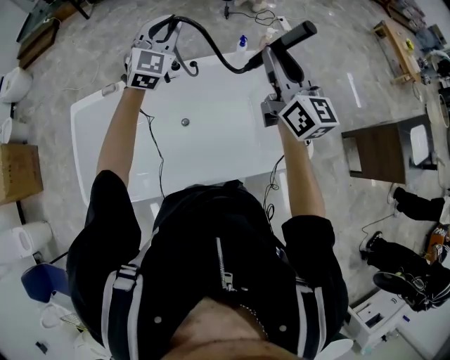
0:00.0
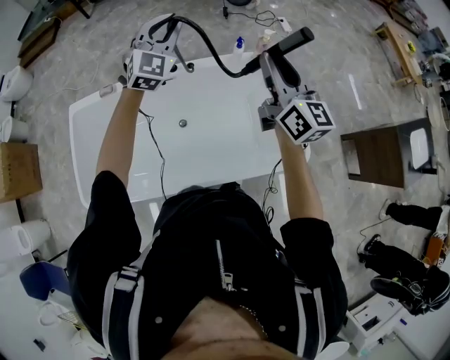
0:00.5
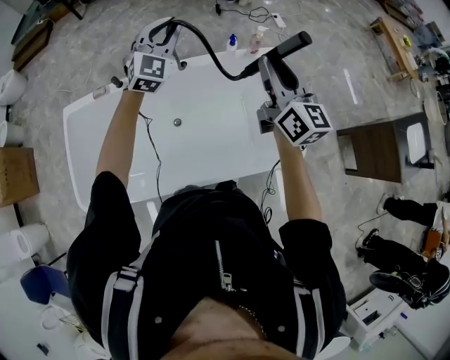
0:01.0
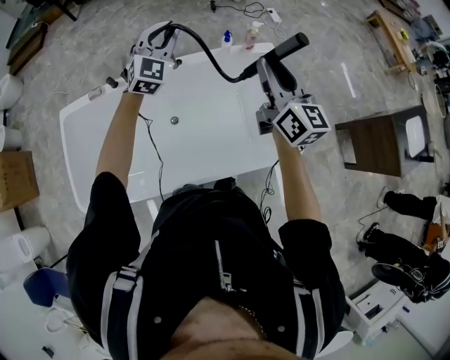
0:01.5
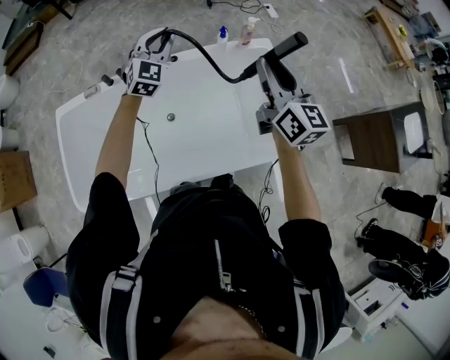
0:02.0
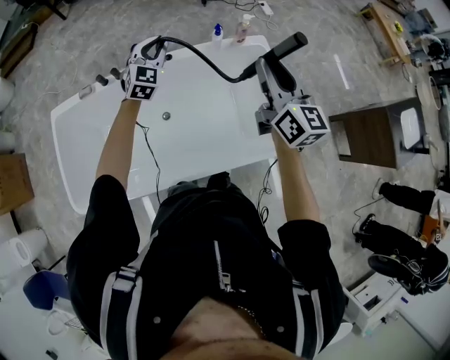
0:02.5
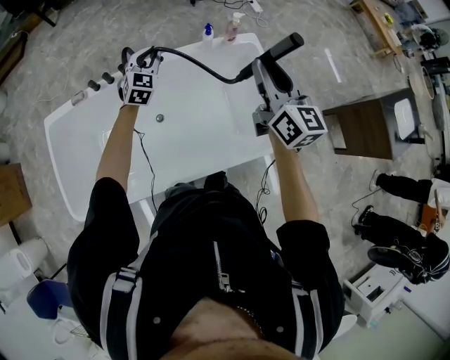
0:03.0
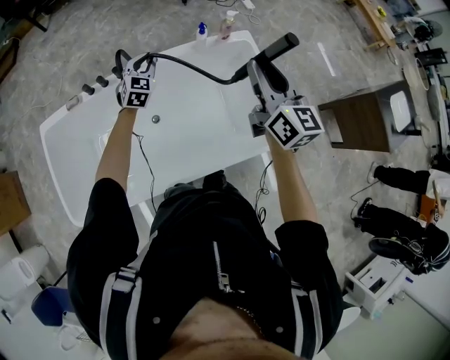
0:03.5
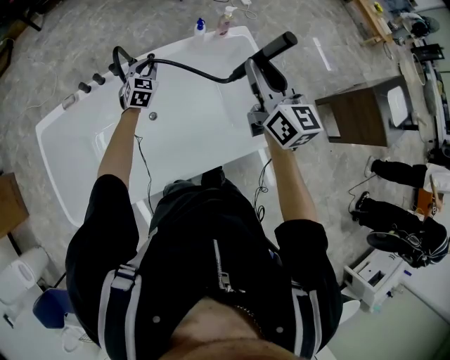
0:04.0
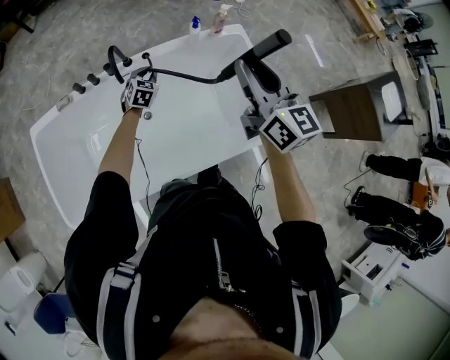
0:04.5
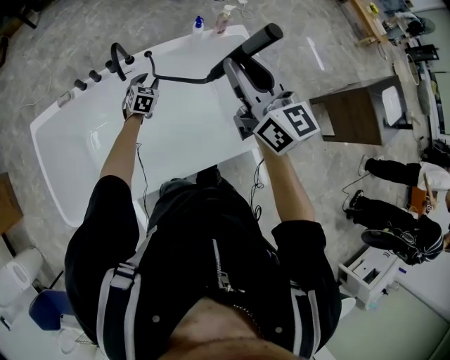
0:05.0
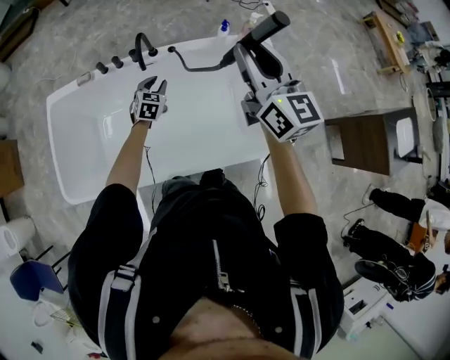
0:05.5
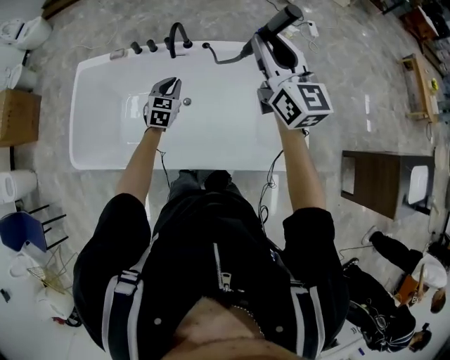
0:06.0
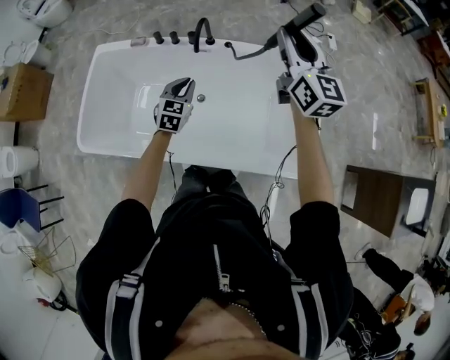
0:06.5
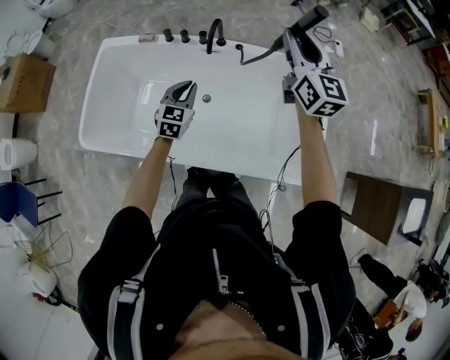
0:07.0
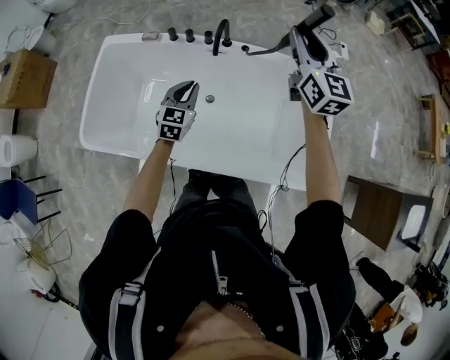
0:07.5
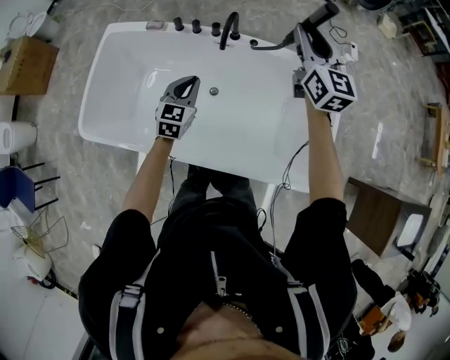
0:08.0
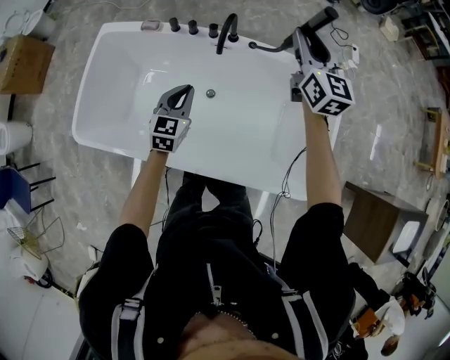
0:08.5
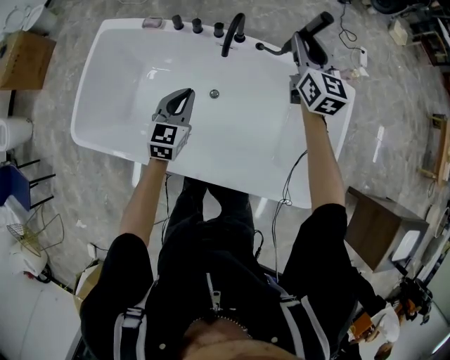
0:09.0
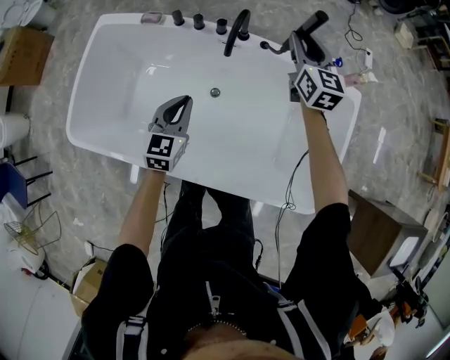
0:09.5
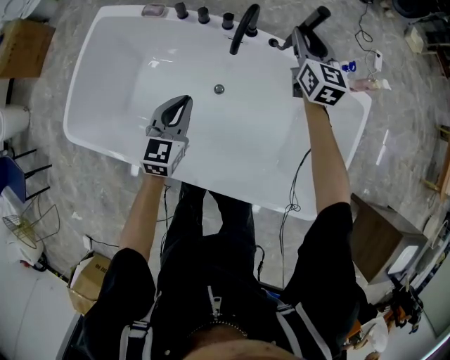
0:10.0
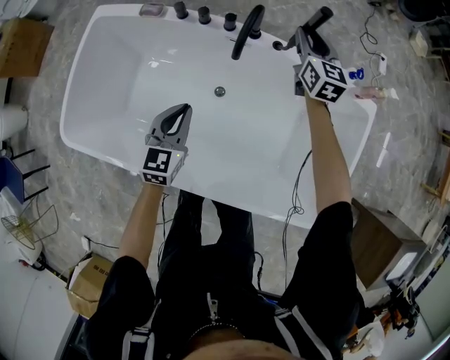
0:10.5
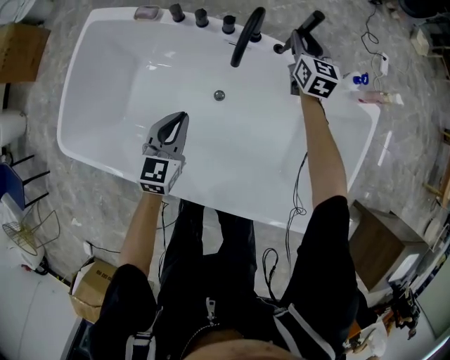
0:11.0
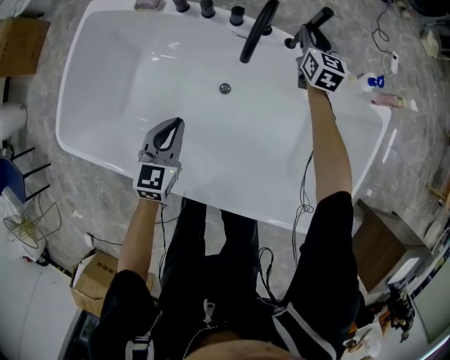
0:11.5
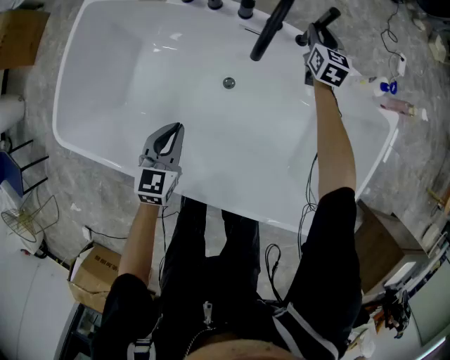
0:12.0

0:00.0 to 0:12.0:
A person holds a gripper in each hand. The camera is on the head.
0:00.0 to 0:02.0: The left gripper heads downward, covering approximately 10 cm. The right gripper shifts roughly 10 cm to the right and downward.
0:02.0 to 0:04.0: The left gripper travels downward by about 20 cm, and swivels about 20 degrees.
0:04.0 to 0:06.0: The left gripper goes approximately 15 cm backward and to the left, and turns by roughly 20 degrees; the right gripper travels to the left by approximately 5 cm, and rotates approximately 20 degrees.
0:06.0 to 0:08.0: The left gripper is displaced to the left by some 10 cm. Meanwhile the right gripper travels forward, to the left and downward by roughly 20 cm.
0:08.0 to 0:10.0: The right gripper is displaced downward and forward by approximately 25 cm. Meanwhile the left gripper shifts some 5 cm downward.
0:10.0 to 0:12.0: The left gripper heads downward, covering about 10 cm. The right gripper shifts some 25 cm downward and forward.

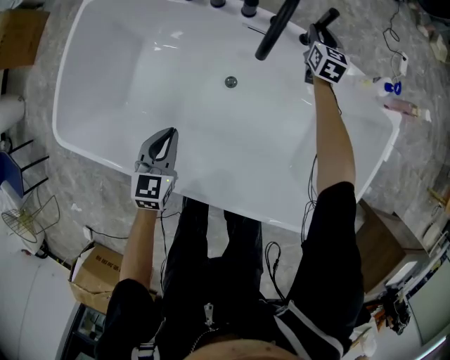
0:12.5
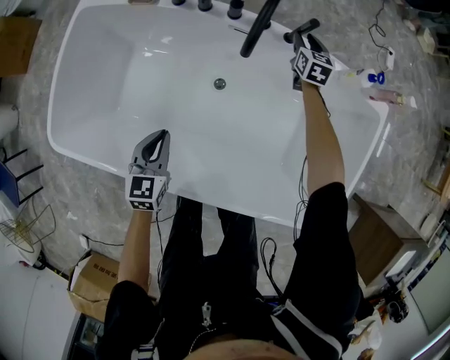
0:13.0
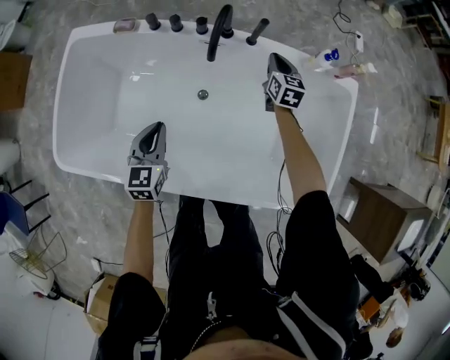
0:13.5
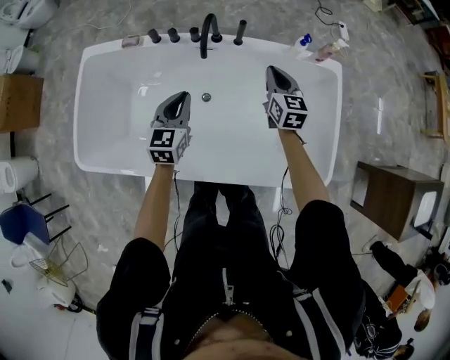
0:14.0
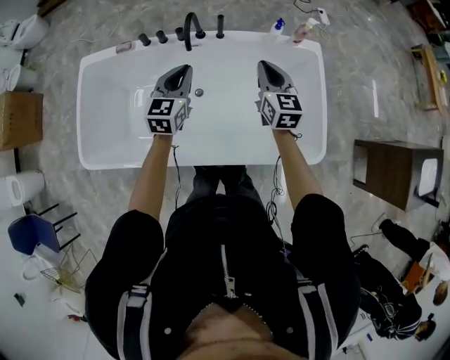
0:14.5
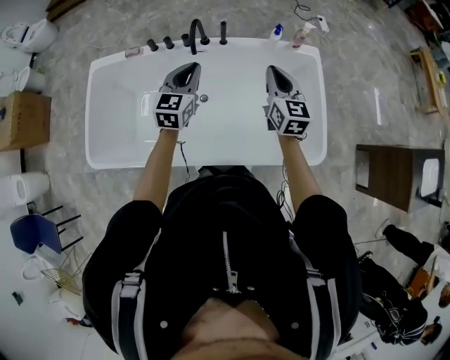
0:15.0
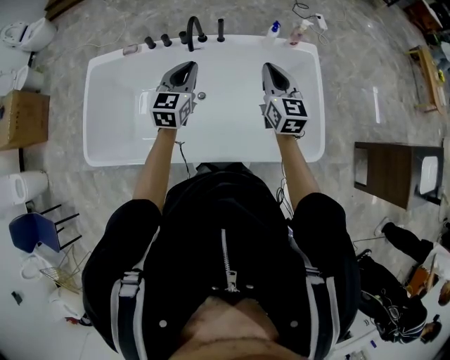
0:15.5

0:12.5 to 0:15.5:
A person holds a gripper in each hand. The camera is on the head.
0:12.5 to 0:14.0: The right gripper shifts some 35 cm backward and upward, and closes; the left gripper goes some 20 cm upward and to the right.
0:14.0 to 0:15.5: The left gripper shifts some 15 cm upward and to the right, while the right gripper moves upward and backward, about 20 cm.

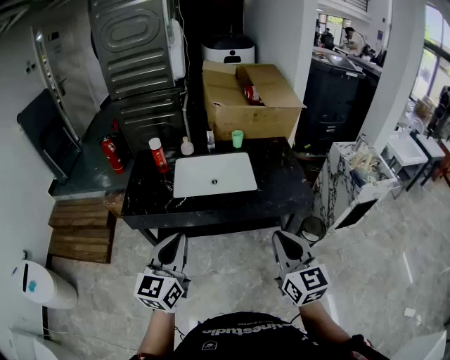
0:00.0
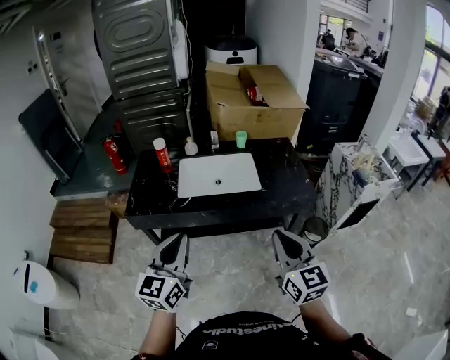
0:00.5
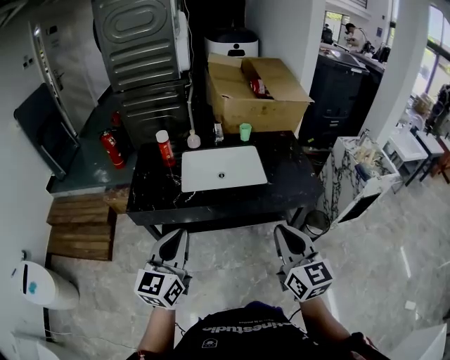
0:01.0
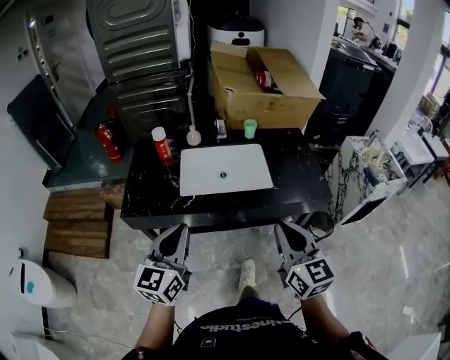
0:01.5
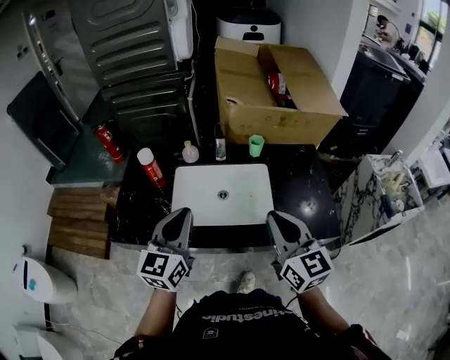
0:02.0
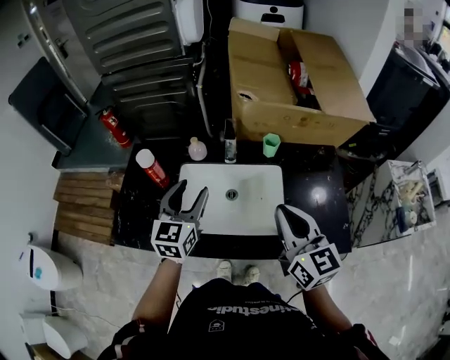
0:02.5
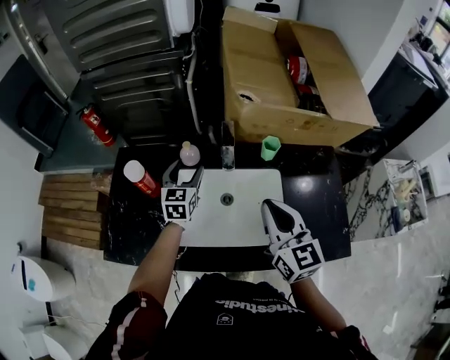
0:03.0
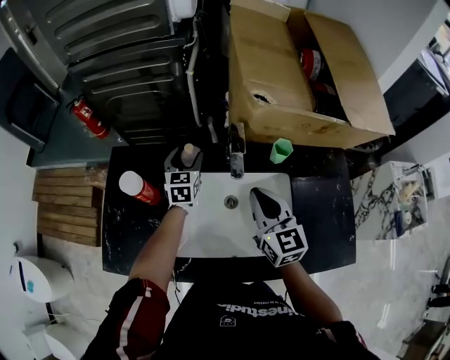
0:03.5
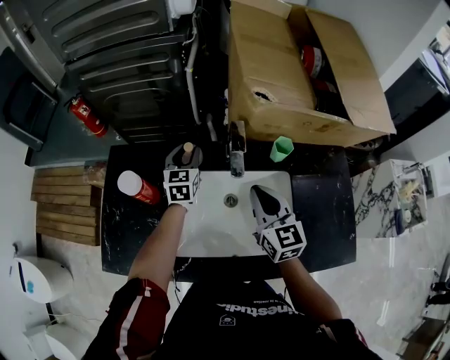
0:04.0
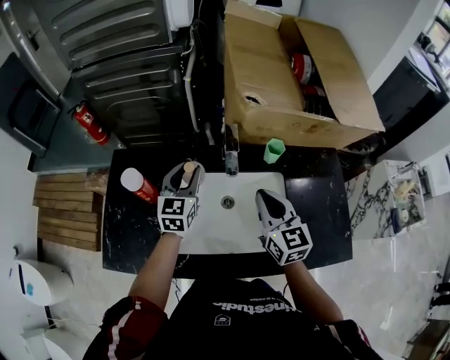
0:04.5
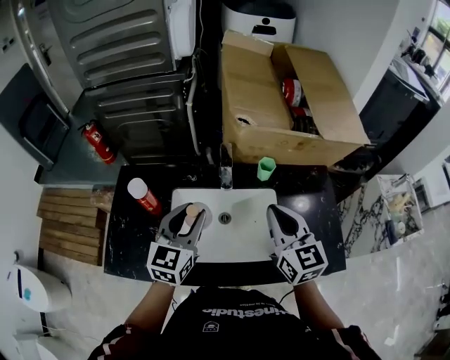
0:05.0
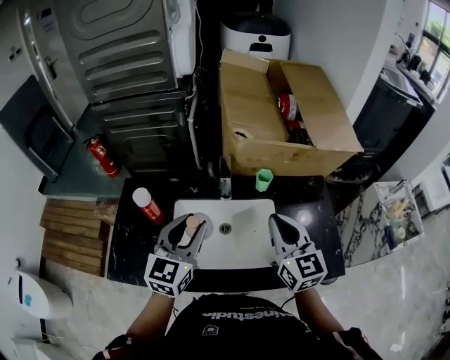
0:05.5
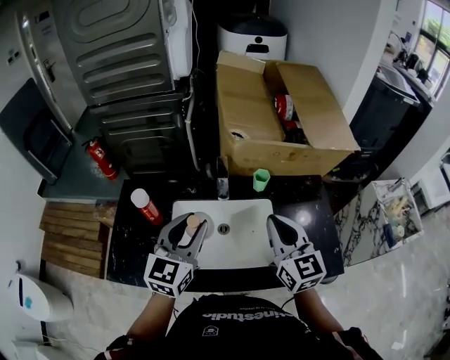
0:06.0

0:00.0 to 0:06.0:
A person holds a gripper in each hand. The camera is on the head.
0:00.0 to 0:02.0: Both grippers move forward, approximately 30 cm.
0:02.0 to 0:04.0: The two grippers go about 40 cm forward and downward. The left gripper opens.
0:04.0 to 0:06.0: The right gripper moves upward, backward and to the right, about 20 cm; the left gripper shifts some 35 cm backward and upward, and swivels about 20 degrees.

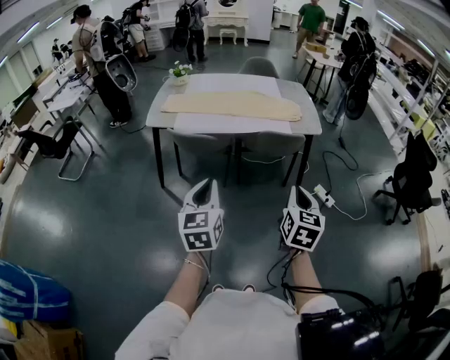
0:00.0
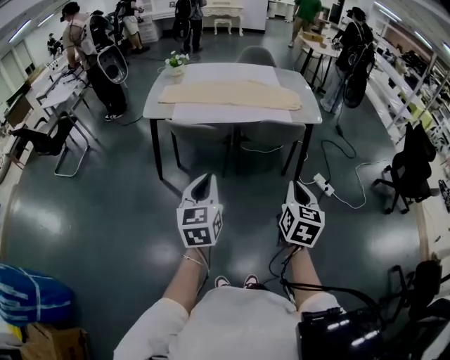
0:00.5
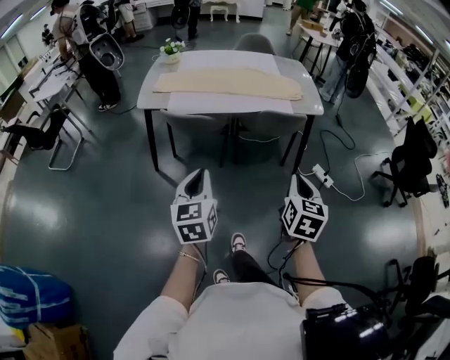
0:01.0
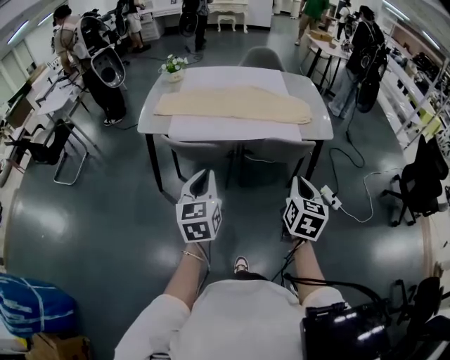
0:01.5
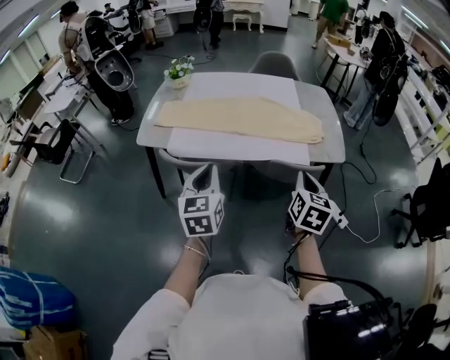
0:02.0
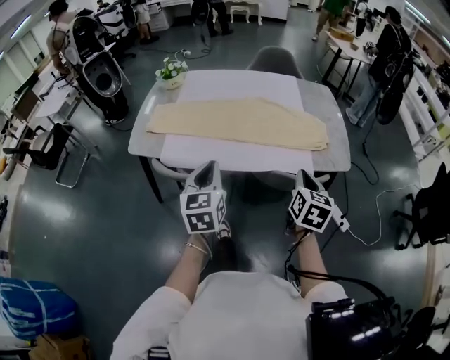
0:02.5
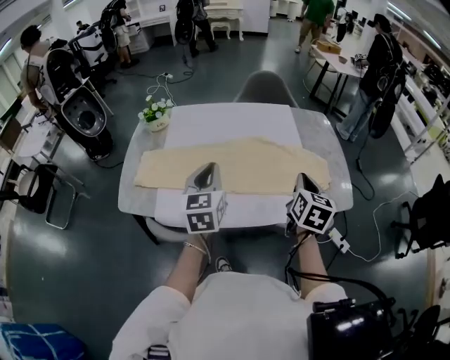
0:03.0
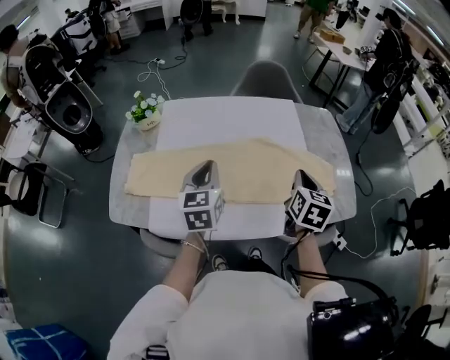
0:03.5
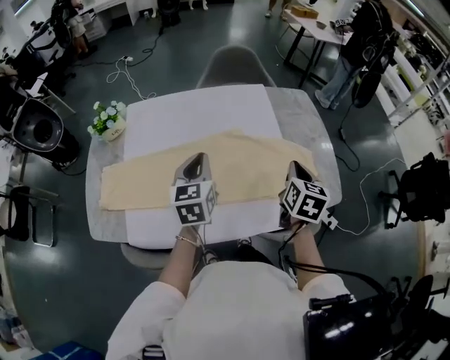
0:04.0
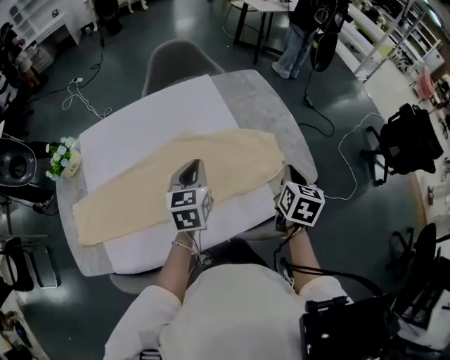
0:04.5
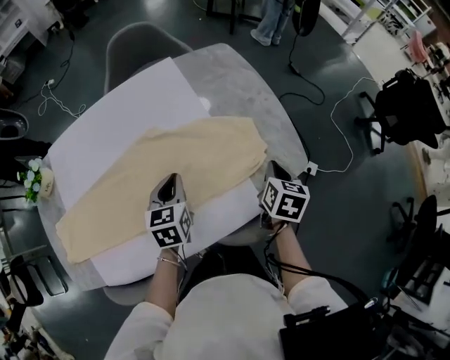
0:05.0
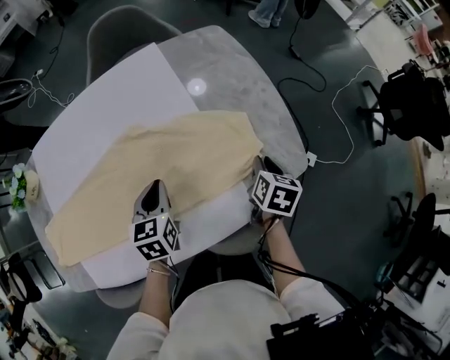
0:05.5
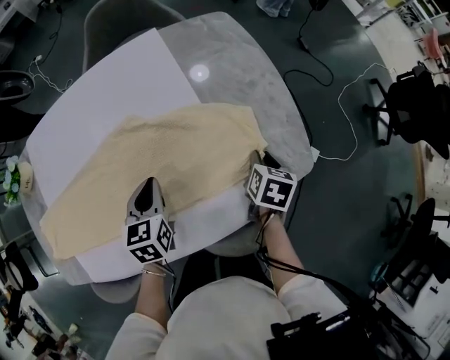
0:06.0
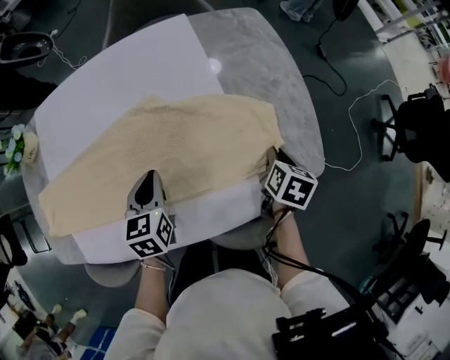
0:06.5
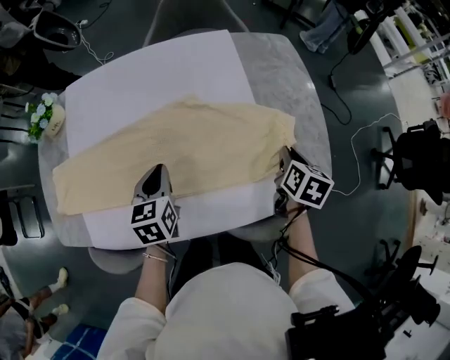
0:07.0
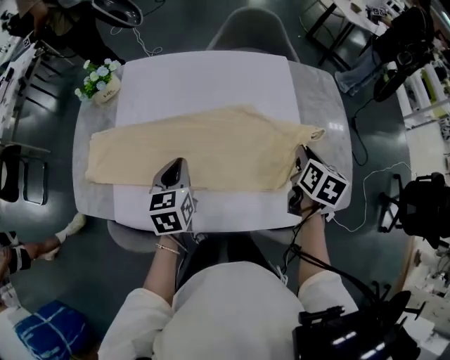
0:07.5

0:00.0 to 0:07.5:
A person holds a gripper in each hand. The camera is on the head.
0:00.0 to 0:02.0: The grippers both shift forward by approximately 35 cm.
0:02.0 to 0:04.0: The pair of grippers is taken forward, some 40 cm.
0:04.0 to 0:05.5: The right gripper is displaced downward and to the right by roughly 30 cm, and turns by approximately 30 degrees; the left gripper travels downward, to the right and forward by some 25 cm, and swivels roughly 20 degrees.
0:05.5 to 0:07.5: The left gripper is displaced to the left and backward by about 25 cm, and rotates some 20 degrees. The right gripper goes roughly 25 cm to the left and upward, and changes its angle by roughly 20 degrees.
